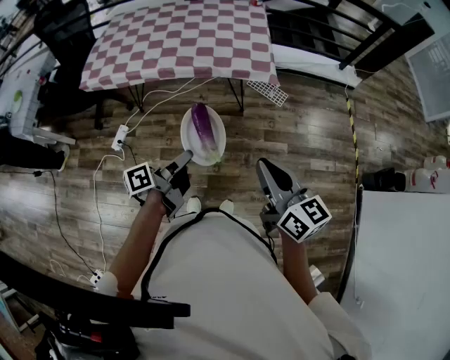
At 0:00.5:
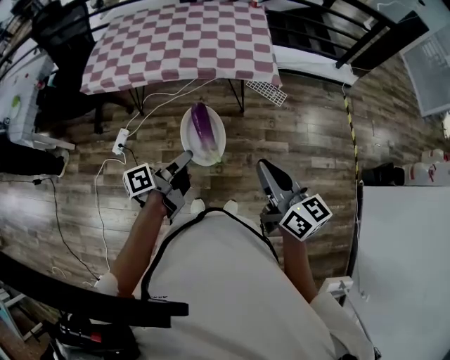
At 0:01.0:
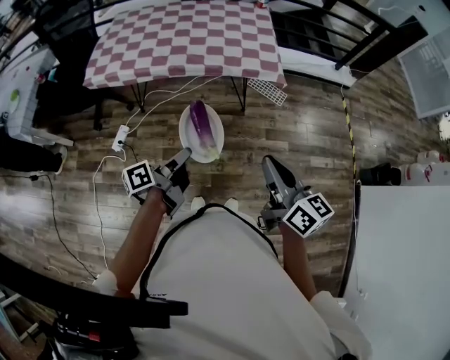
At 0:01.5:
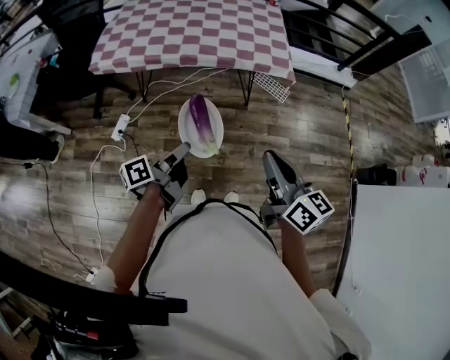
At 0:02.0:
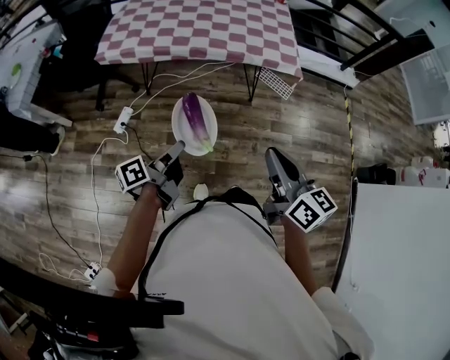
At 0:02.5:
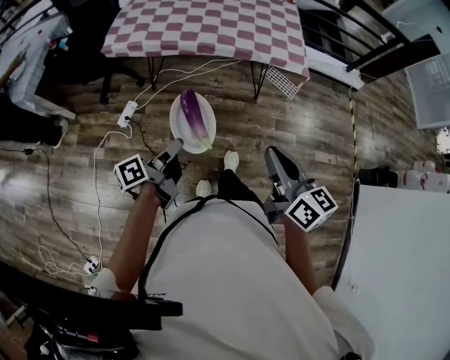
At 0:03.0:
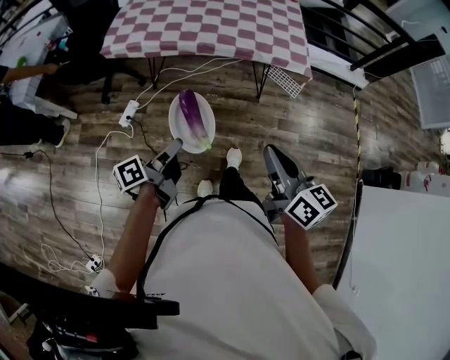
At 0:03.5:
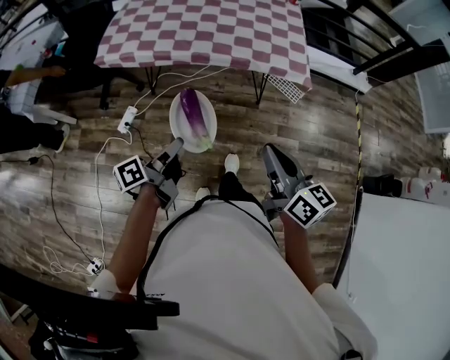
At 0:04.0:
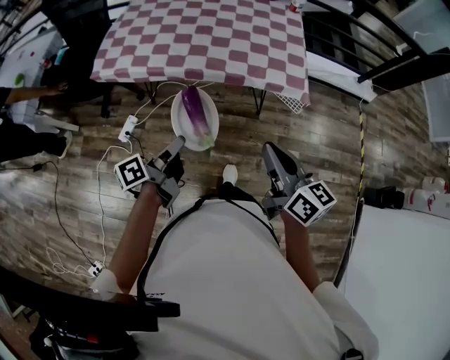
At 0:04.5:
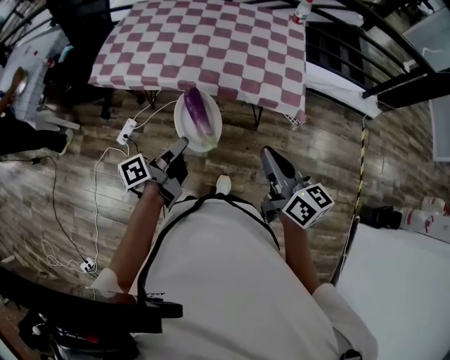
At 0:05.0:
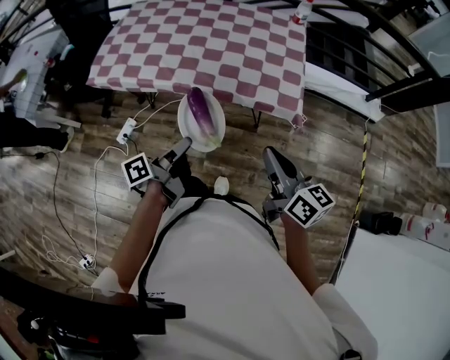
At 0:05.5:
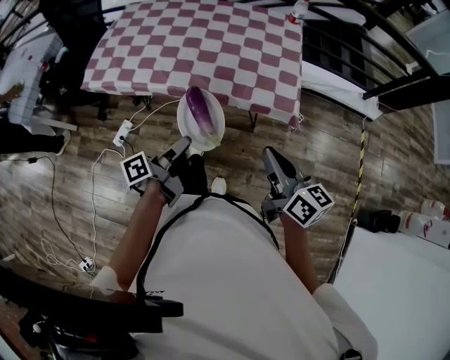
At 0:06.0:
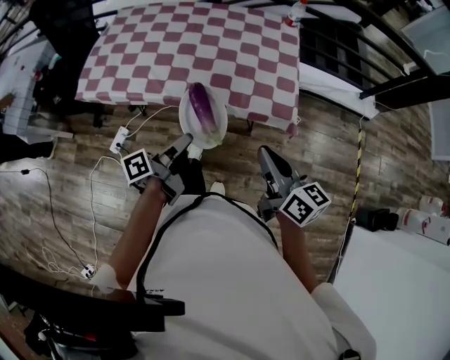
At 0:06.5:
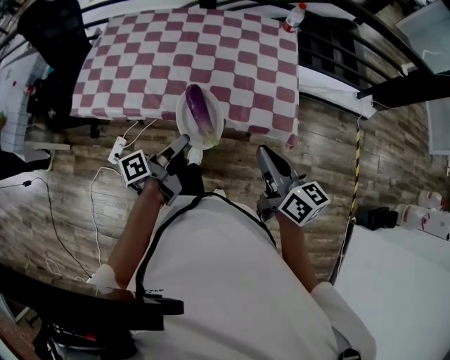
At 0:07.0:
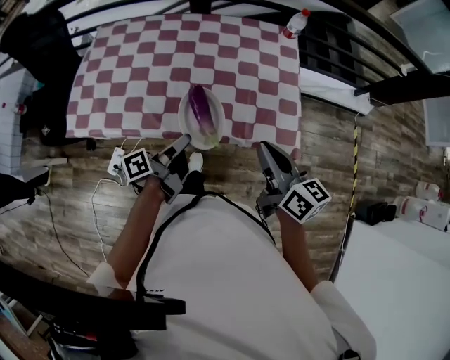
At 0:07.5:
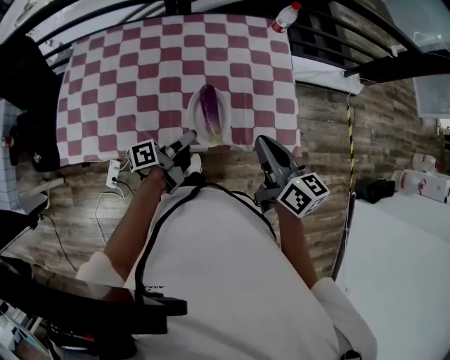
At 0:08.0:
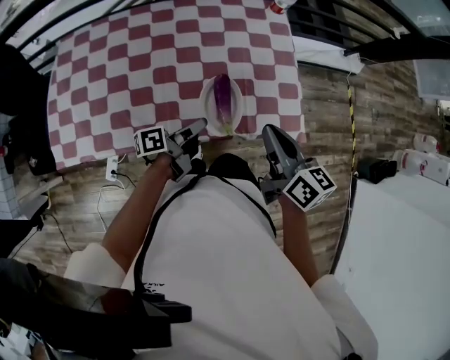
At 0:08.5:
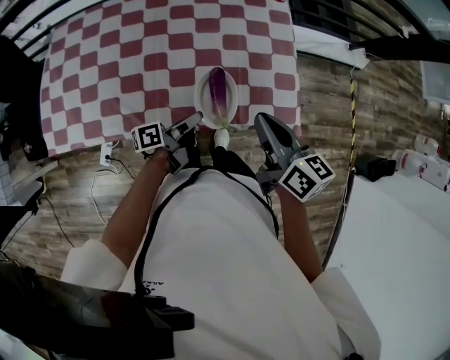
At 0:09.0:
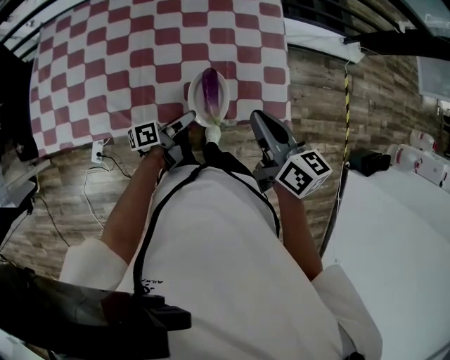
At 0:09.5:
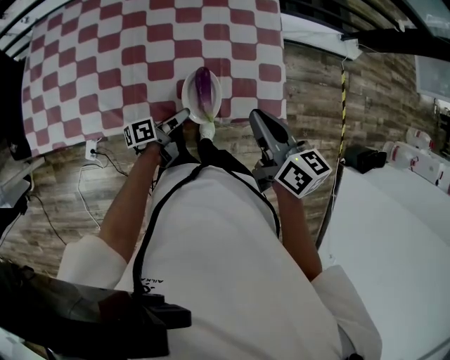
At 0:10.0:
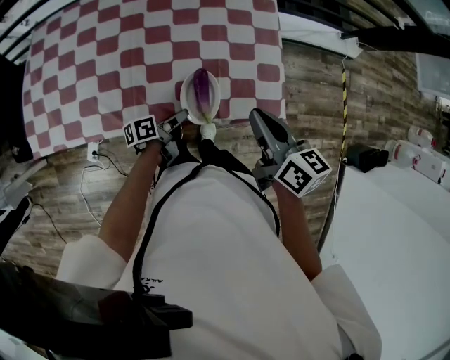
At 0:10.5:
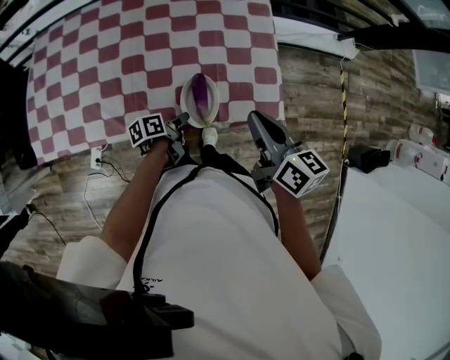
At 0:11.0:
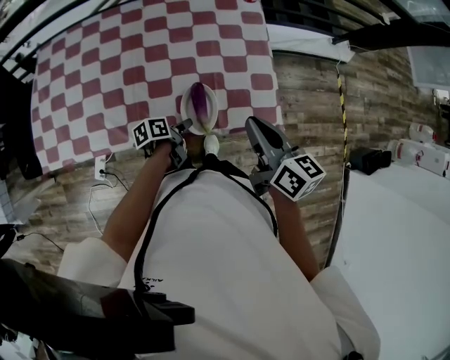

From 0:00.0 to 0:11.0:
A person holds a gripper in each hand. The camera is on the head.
From 0:00.0 to 0:02.0: The right gripper ends up about 20 cm from where it was.
From 0:02.0 to 0:03.5: The right gripper ends up about 10 cm from where it was.
From 0:03.5 to 0:05.5: The right gripper moves some 25 cm.
From 0:05.5 to 0:07.5: The right gripper changes place by some 30 cm.
From 0:07.5 to 0:09.0: The right gripper ends up some 5 cm from where it was.

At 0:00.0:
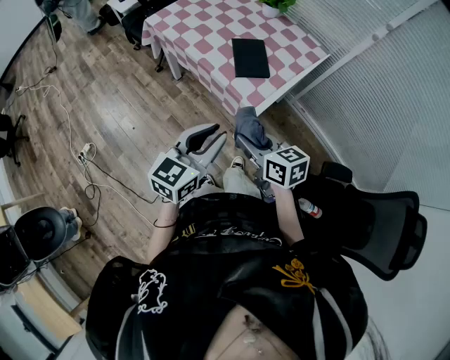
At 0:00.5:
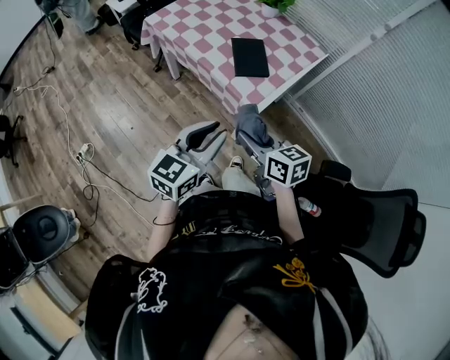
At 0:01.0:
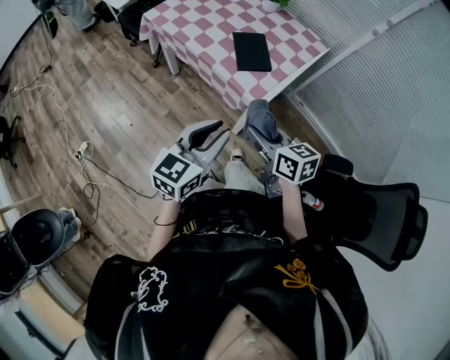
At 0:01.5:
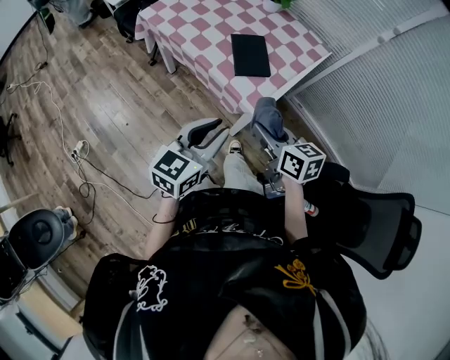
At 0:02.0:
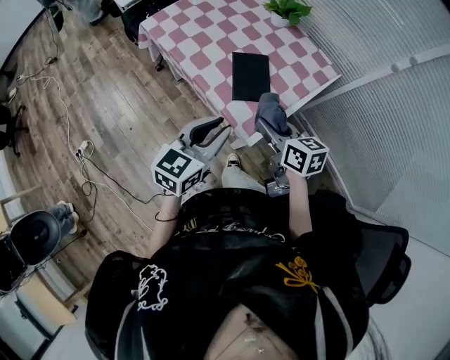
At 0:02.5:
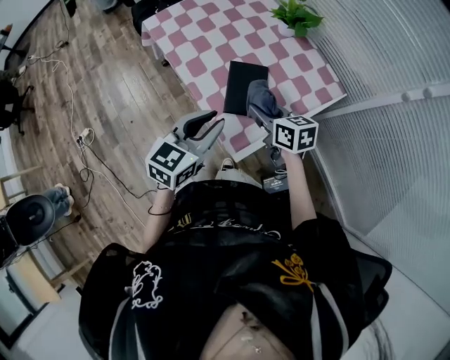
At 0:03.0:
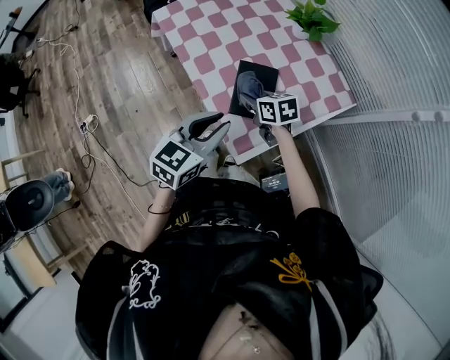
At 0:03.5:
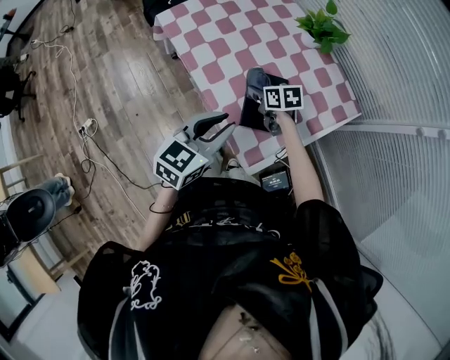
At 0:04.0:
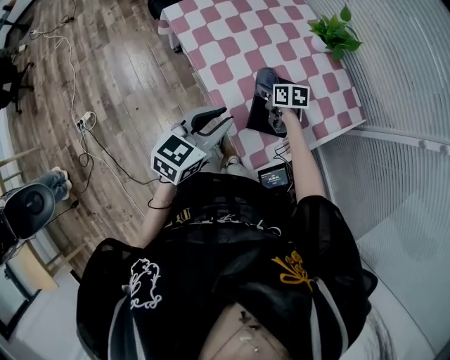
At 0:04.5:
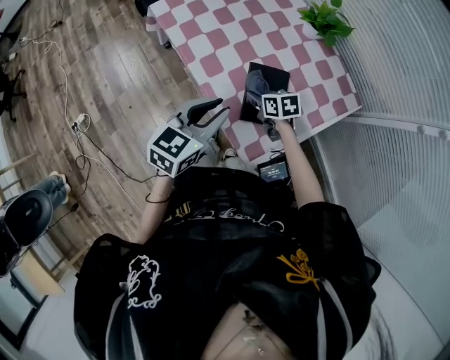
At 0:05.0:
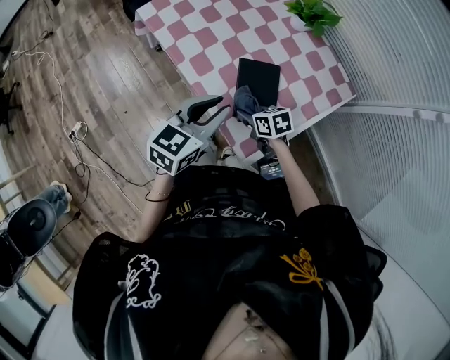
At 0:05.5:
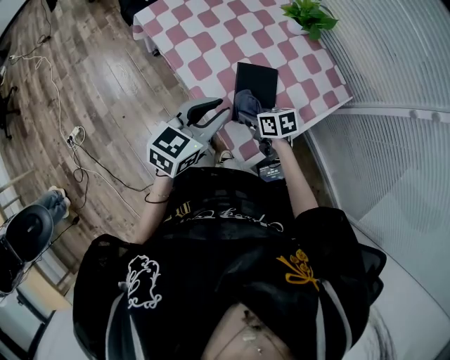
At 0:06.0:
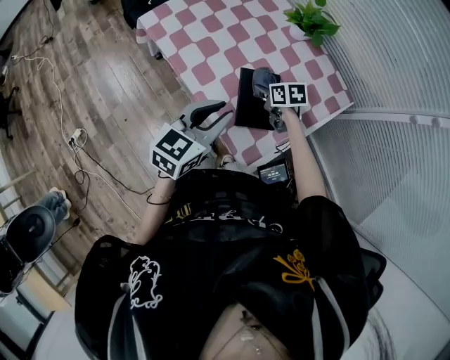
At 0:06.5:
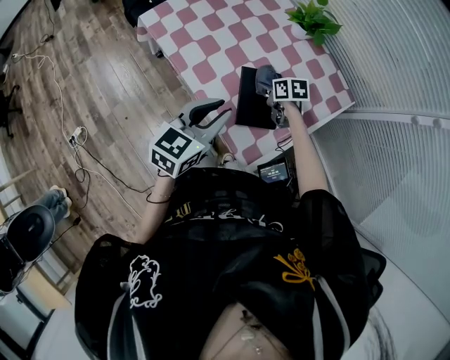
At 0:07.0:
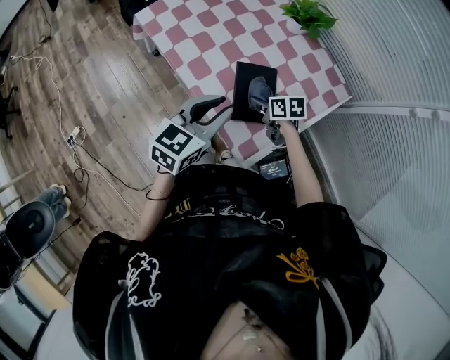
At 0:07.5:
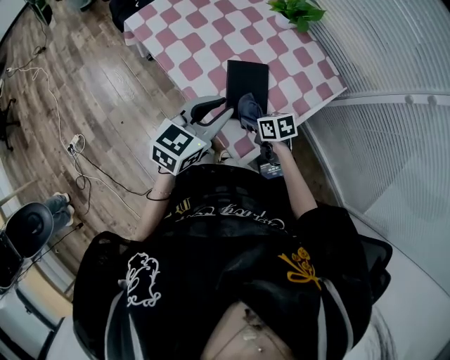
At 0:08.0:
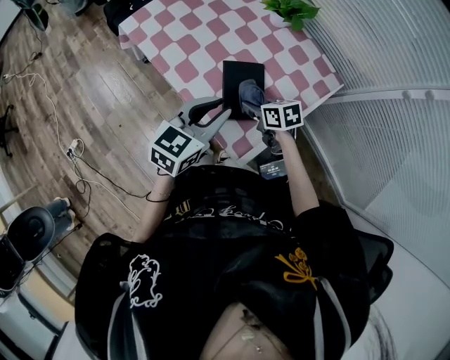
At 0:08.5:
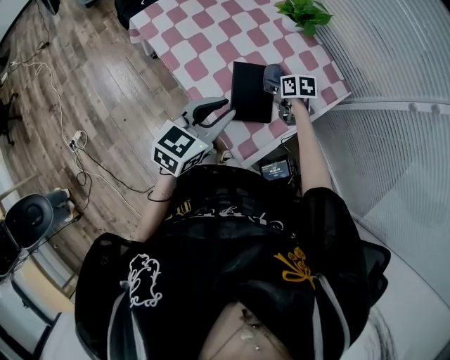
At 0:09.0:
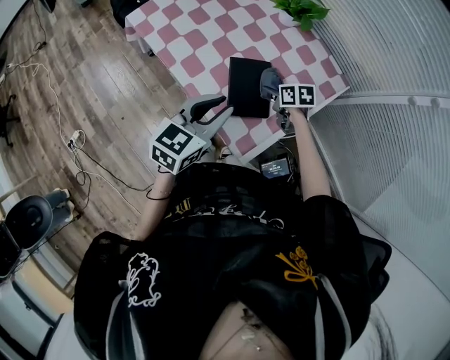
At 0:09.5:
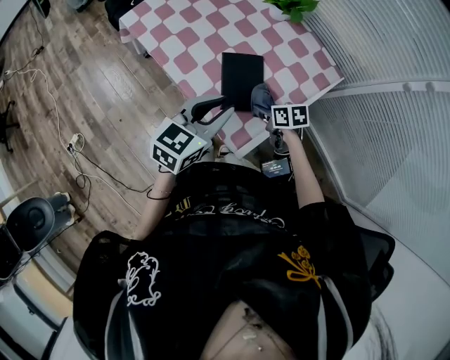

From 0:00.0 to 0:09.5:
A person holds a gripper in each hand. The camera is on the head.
From 0:00.0 to 0:02.0: The left gripper shifts roughly 15 cm forward, while the right gripper goes some 20 cm forward and to the right.
From 0:02.0 to 0:04.0: The right gripper travels forward and downward by some 35 cm, and changes its angle by some 30 degrees. The left gripper is displaced forward by about 15 cm.
From 0:04.0 to 0:05.5: The right gripper travels backward by approximately 15 cm.
From 0:05.5 to 0:07.5: The right gripper reaches approximately 10 cm forward, then returns.
From 0:07.5 to 0:09.5: The right gripper goes some 5 cm to the right, and reaches roughly 15 cm forward, then returns.

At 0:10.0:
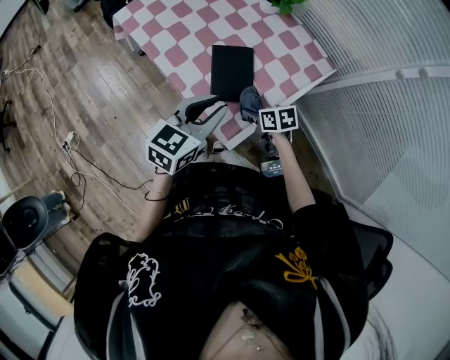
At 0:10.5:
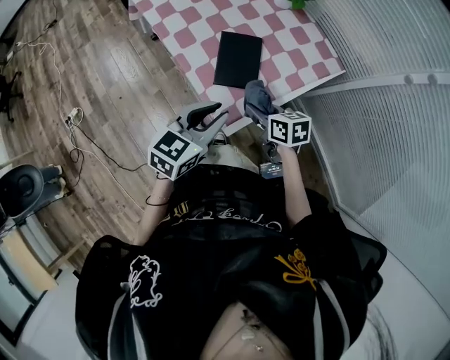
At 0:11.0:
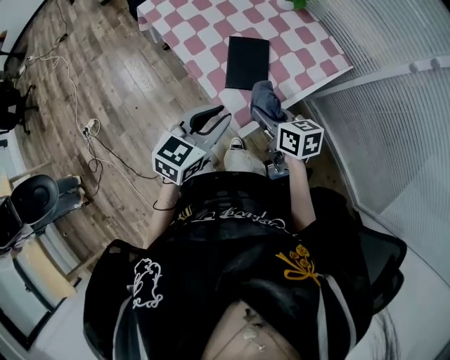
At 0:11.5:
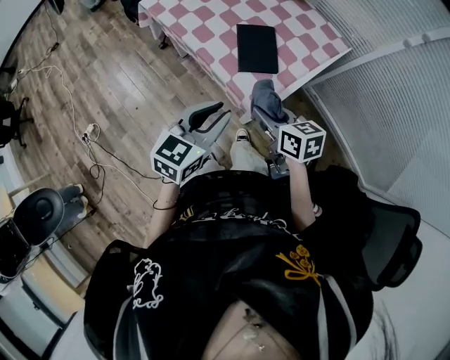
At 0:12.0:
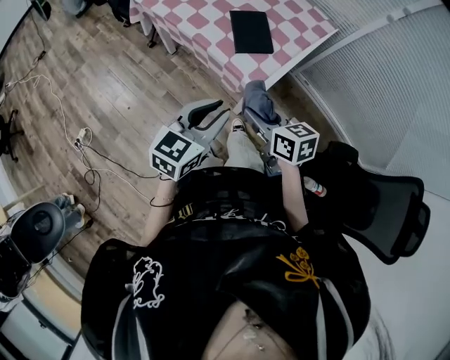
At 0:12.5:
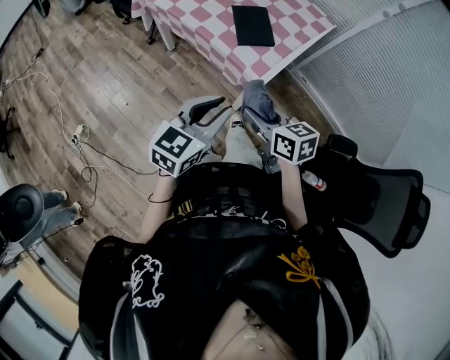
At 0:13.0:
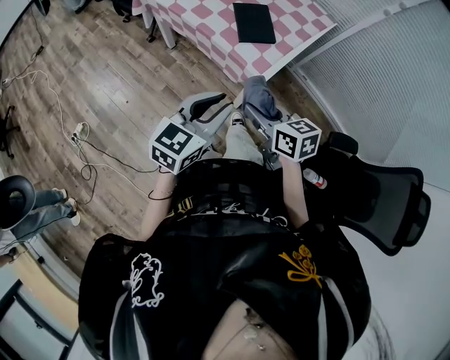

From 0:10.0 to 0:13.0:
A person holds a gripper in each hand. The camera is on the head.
From 0:10.0 to 0:11.5: The left gripper shifts approximately 15 cm backward and to the left, while the right gripper moves upward, backward and to the left, approximately 20 cm, and rotates some 20 degrees.
From 0:11.5 to 0:13.0: Both grippers move backward, about 15 cm.

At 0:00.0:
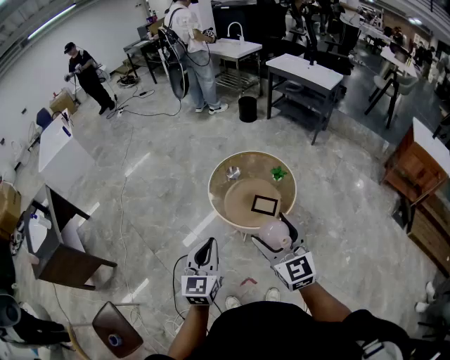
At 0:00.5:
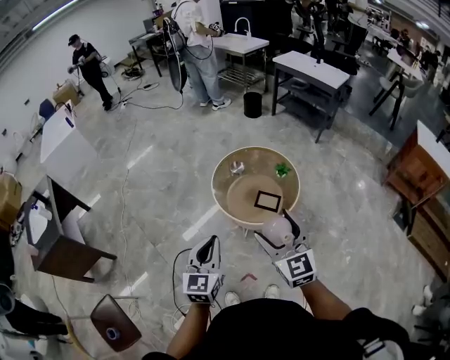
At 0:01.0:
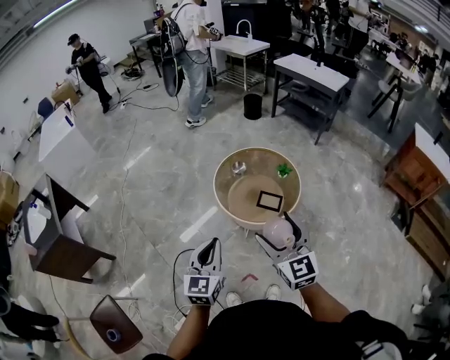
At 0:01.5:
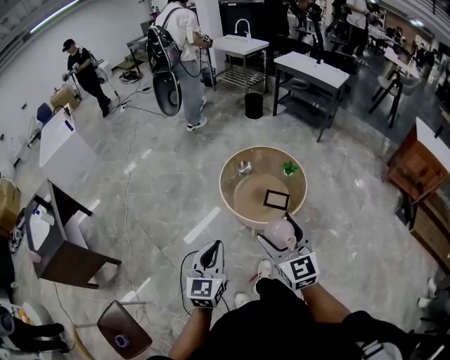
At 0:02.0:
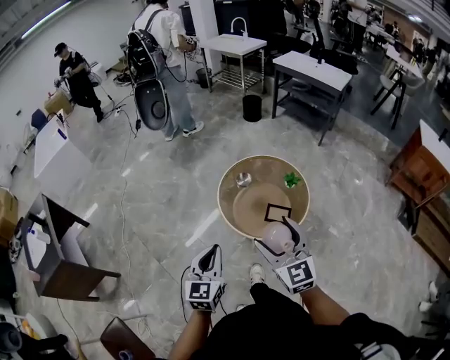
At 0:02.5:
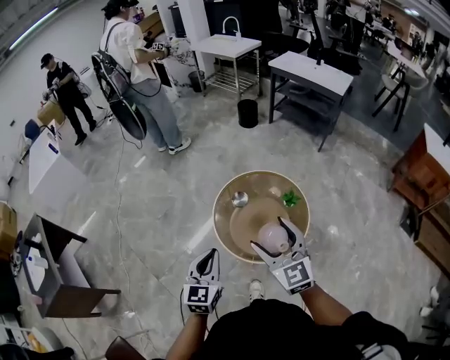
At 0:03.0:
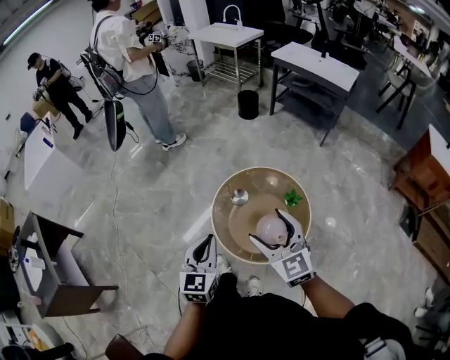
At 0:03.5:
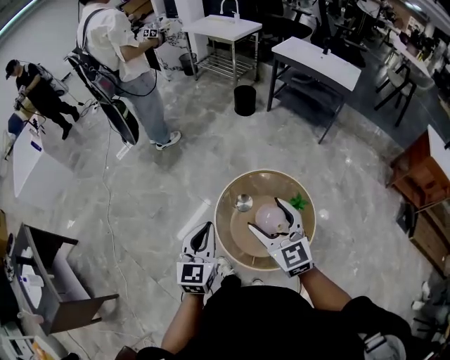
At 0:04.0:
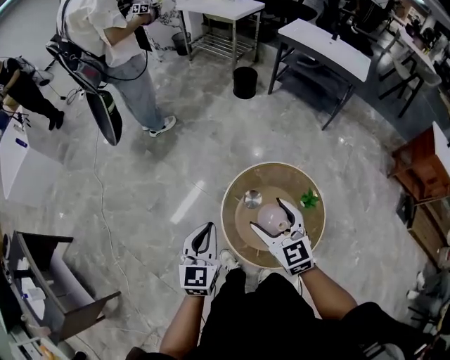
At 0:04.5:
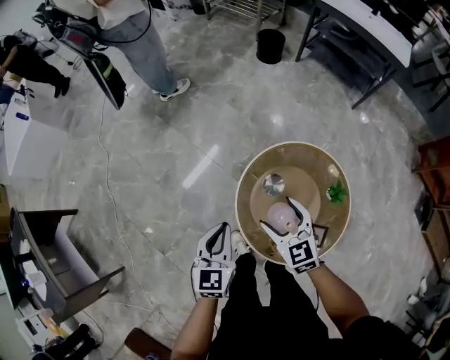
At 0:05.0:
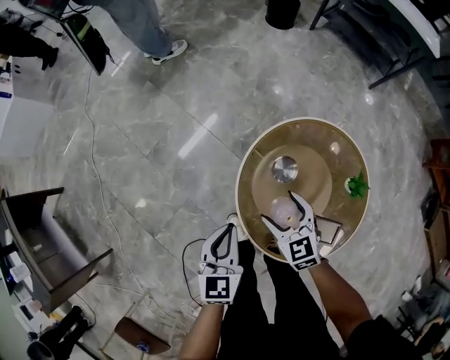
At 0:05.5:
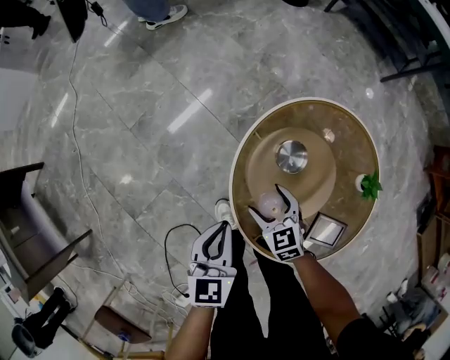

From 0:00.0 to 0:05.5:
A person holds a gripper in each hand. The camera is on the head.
From 0:00.0 to 0:02.0: Both grippers travel together forward and to the left, roughly 10 cm.
From 0:02.0 to 0:03.5: The grippers both shift forward by approximately 30 cm.
From 0:03.5 to 0:05.5: The grippers both shift downward by roughly 40 cm. The right gripper angles its fingers downward, by about 30 degrees, while the left gripper turns by some 30 degrees.
